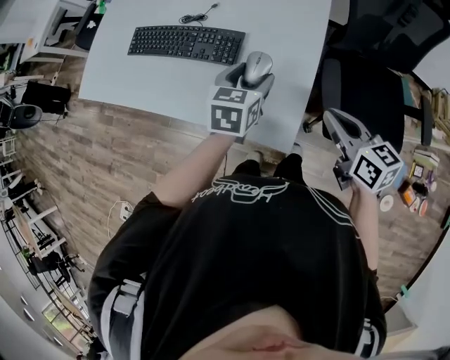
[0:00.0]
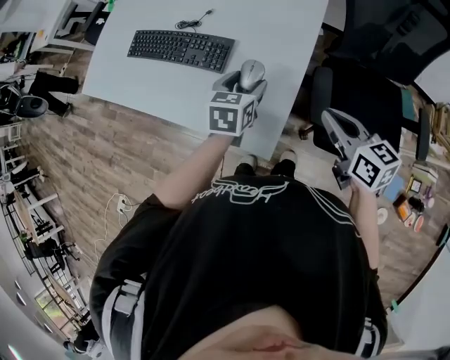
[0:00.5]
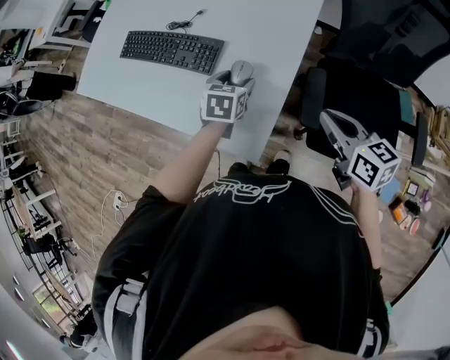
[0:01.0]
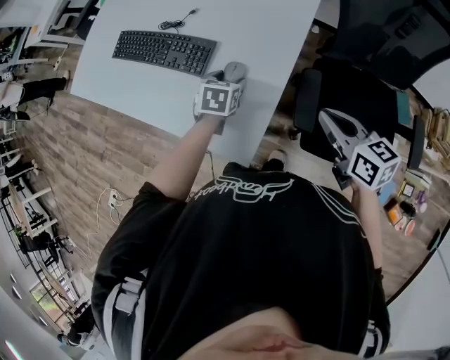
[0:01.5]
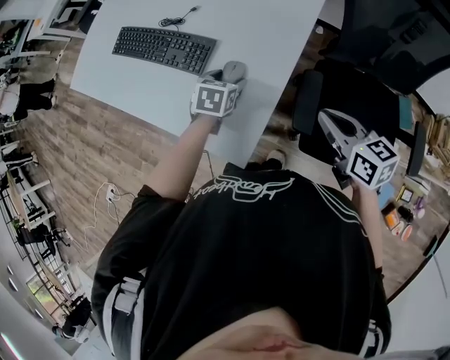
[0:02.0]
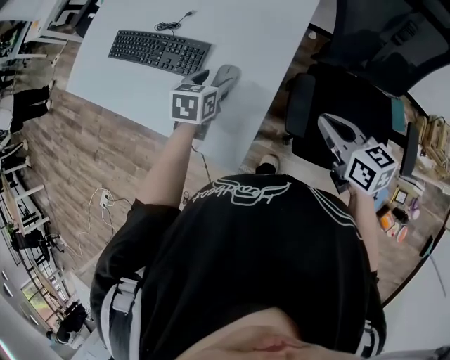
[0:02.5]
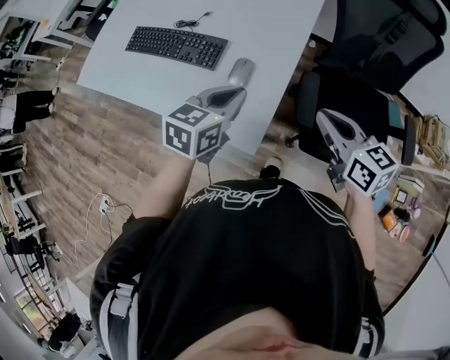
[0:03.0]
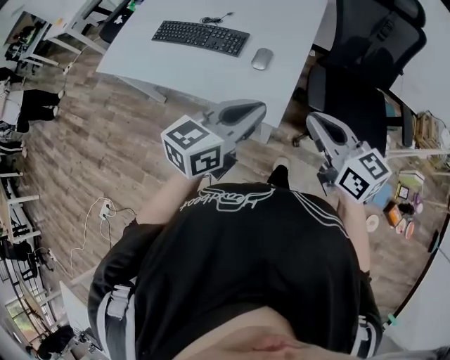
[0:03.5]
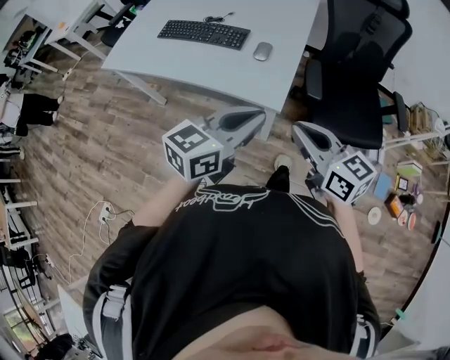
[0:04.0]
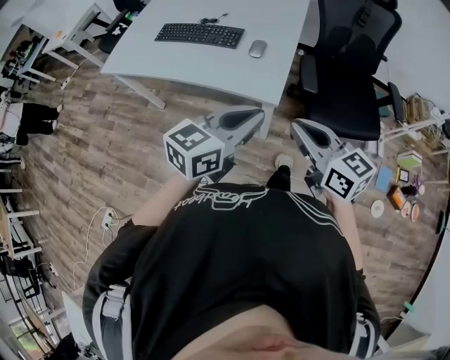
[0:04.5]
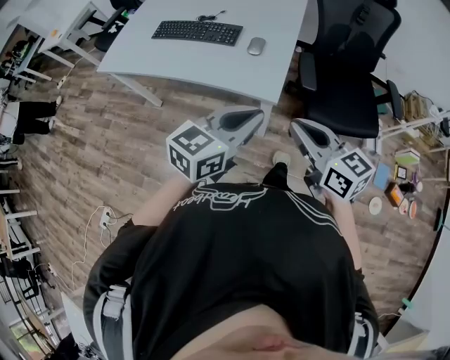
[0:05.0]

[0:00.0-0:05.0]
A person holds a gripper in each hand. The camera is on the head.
0:00.0 to 0:02.5: The left gripper travels downward by approximately 5 cm, while the right gripper moves to the right, about 15 cm.
0:02.5 to 0:05.0: The left gripper travels backward and upward by roughly 50 cm, points its fingers some 30 degrees further upward, and closes its fingers. The right gripper shifts approximately 40 cm backward and to the left, and turns by about 20 degrees.

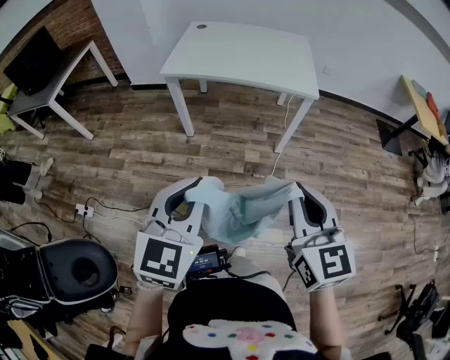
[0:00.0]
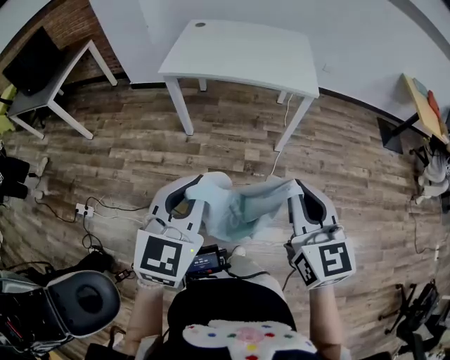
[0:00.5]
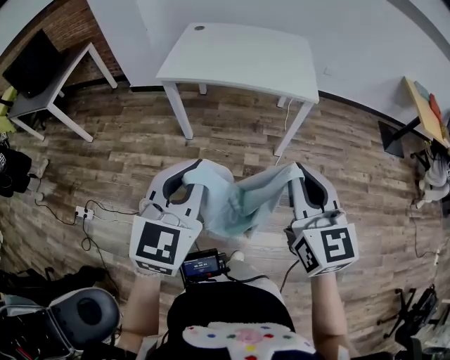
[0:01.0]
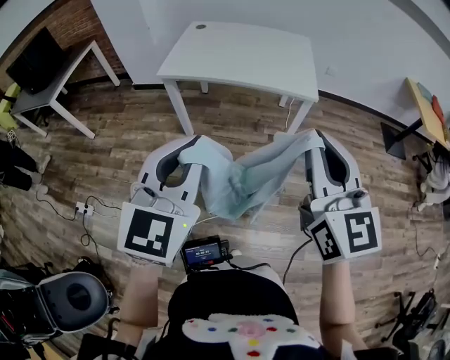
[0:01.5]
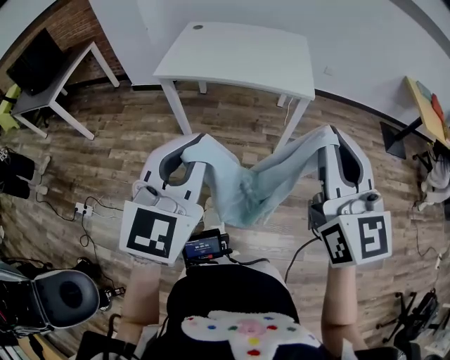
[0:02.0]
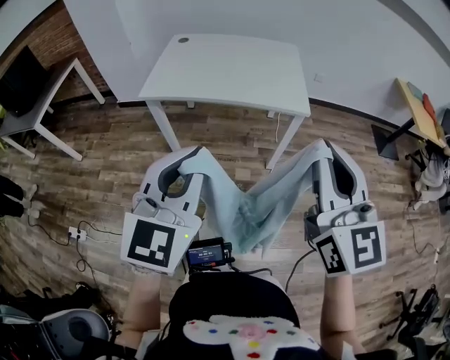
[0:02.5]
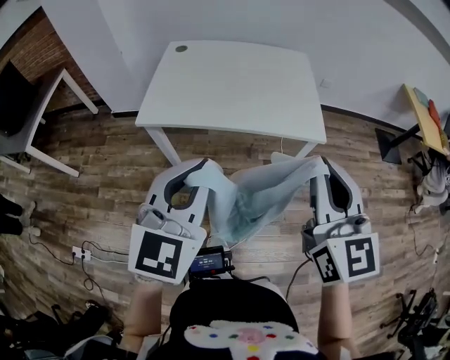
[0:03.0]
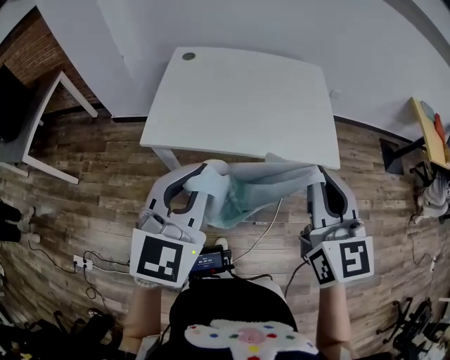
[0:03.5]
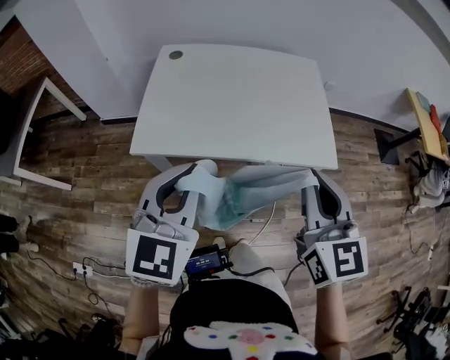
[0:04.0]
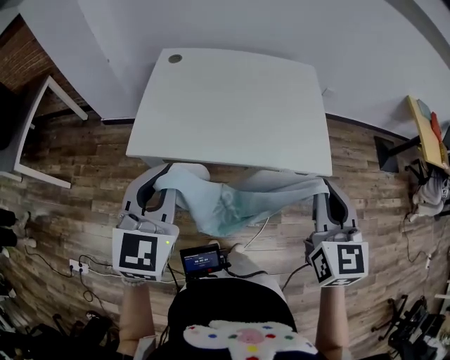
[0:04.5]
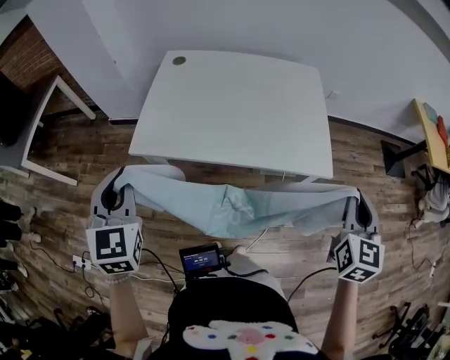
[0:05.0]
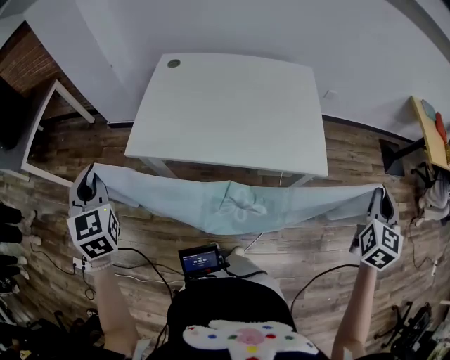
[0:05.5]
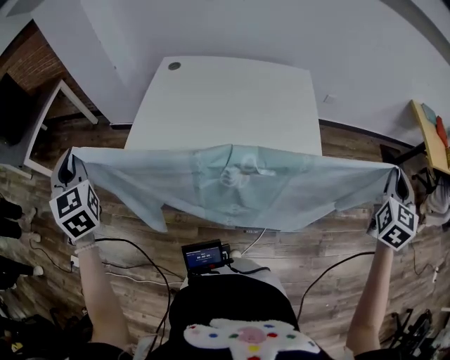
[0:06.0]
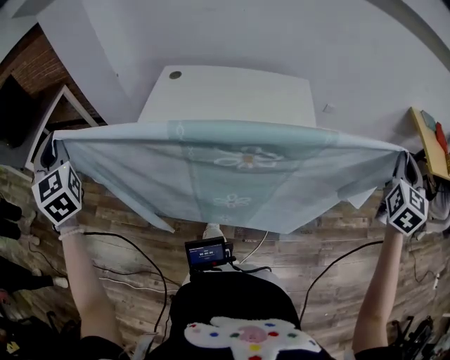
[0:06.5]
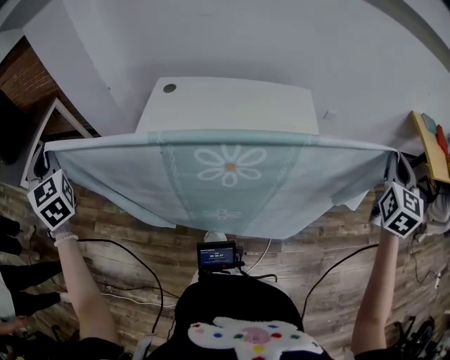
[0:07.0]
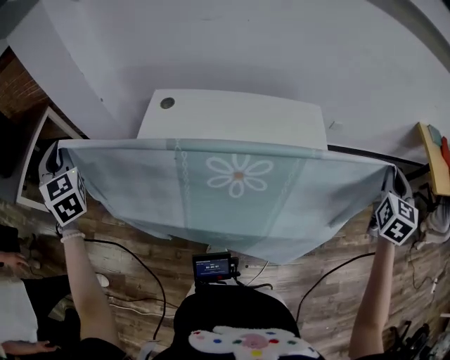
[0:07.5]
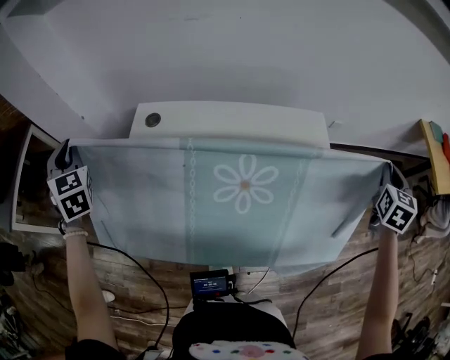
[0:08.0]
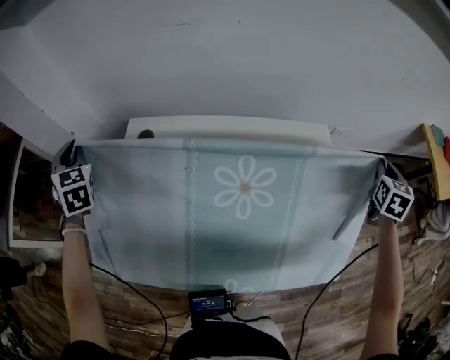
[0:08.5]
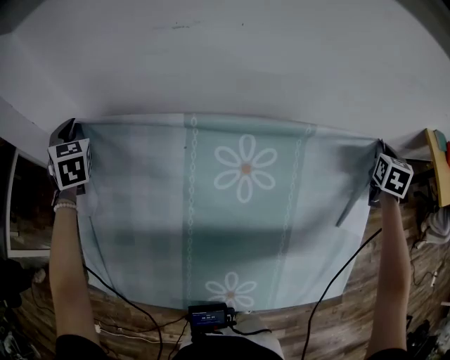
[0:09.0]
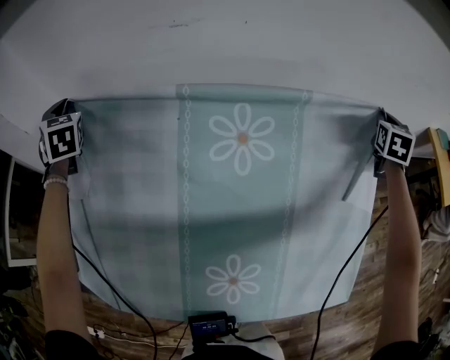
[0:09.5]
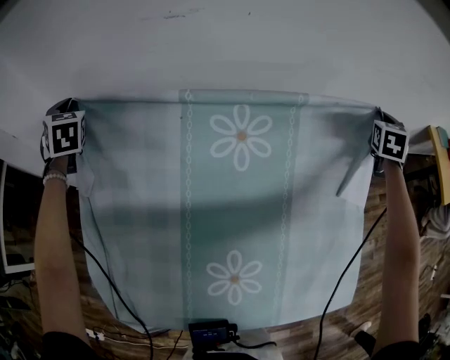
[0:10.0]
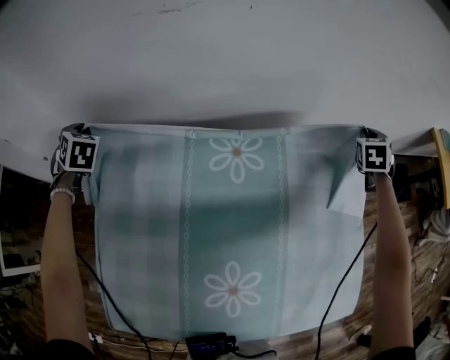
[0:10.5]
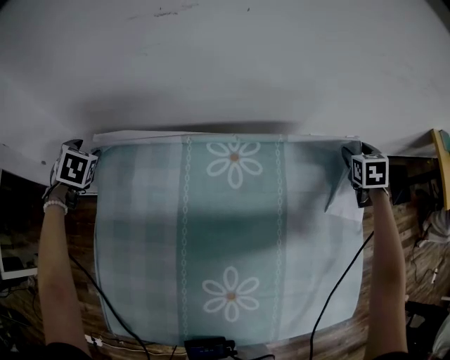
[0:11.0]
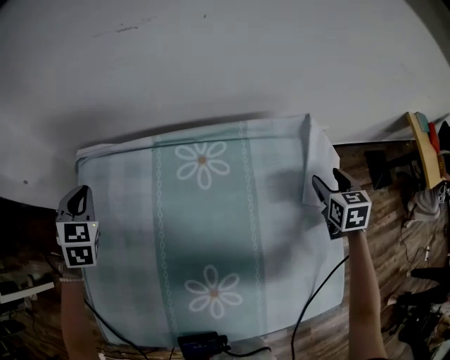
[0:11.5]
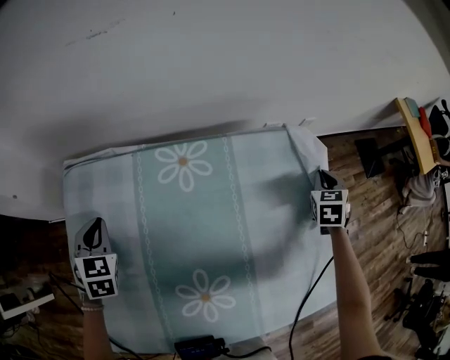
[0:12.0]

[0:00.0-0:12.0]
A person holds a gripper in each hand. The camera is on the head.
0:00.0 to 0:02.0: The grippers both shift upward, forward and to the right by about 15 cm.
0:02.0 to 0:04.0: The two grippers go roughly 35 cm forward and to the left.
0:04.0 to 0:06.0: The right gripper moves to the right, about 35 cm, and turns by roughly 30 degrees. The left gripper shifts some 25 cm to the left, and turns by about 50 degrees.
0:06.0 to 0:08.0: Both grippers travel together forward, approximately 35 cm.
0:08.0 to 0:10.0: Both grippers travel together forward, approximately 30 cm.
0:10.0 to 0:12.0: The left gripper moves to the right, backward and downward, some 30 cm, swivels approximately 30 degrees, and opens, then closes again; the right gripper is displaced backward and downward by about 20 cm, and opens, then closes once more.

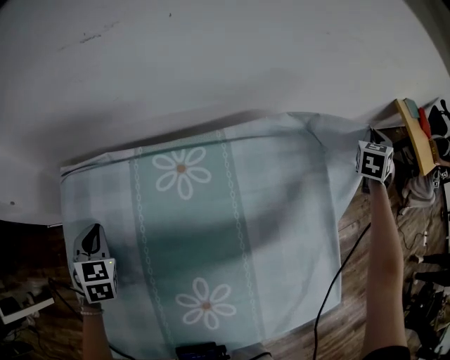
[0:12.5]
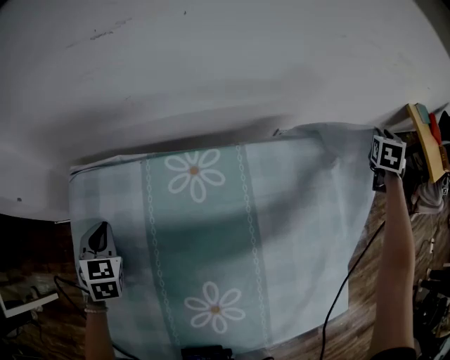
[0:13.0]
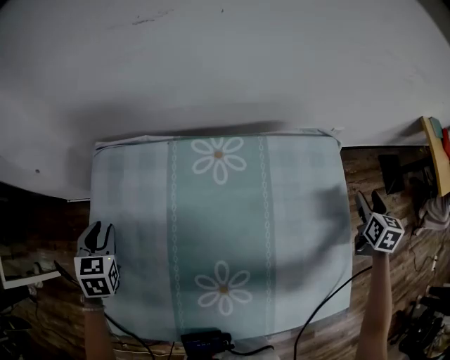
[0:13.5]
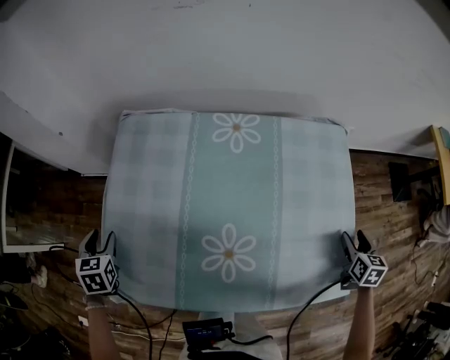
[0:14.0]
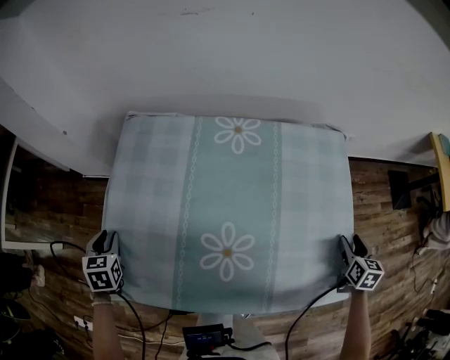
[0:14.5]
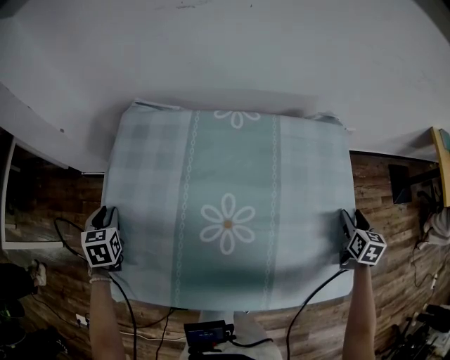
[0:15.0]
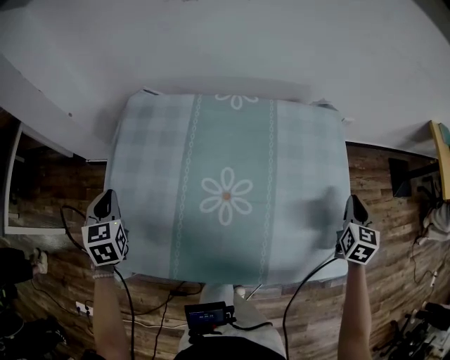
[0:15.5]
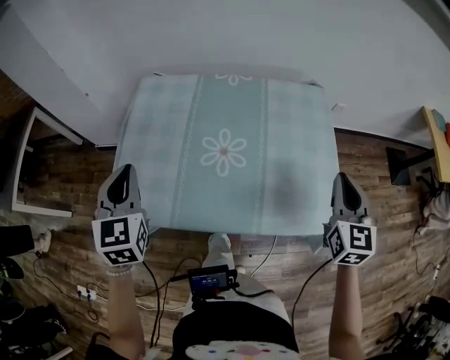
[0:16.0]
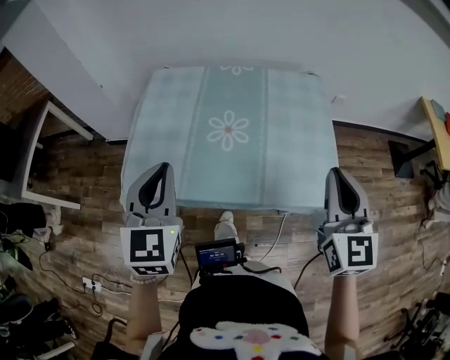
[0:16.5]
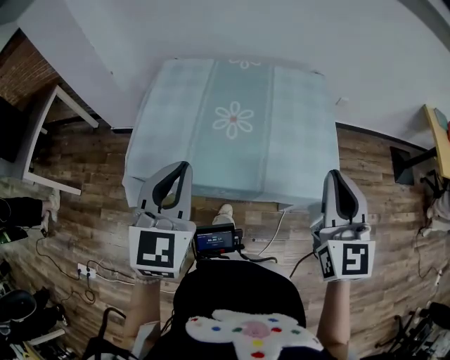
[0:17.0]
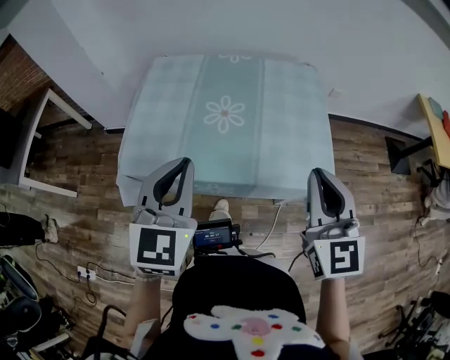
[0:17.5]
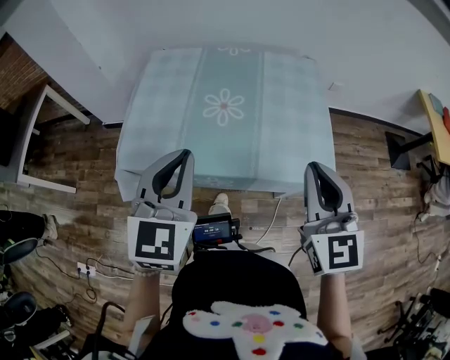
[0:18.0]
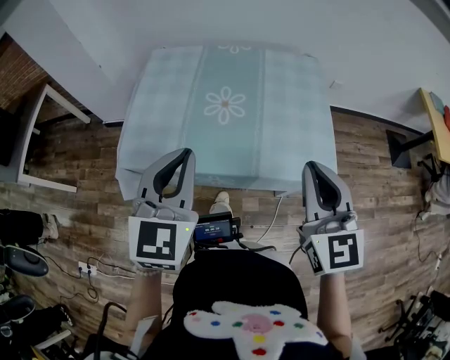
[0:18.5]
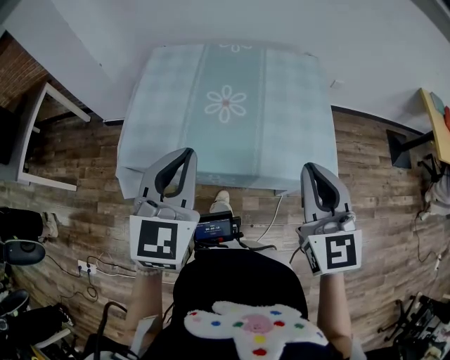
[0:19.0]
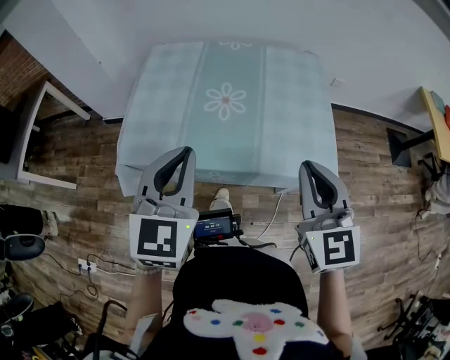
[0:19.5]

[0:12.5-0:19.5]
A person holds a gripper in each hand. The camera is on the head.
0:12.5 to 0:14.5: The left gripper shifts by roughly 25 cm, changes its angle by approximately 30 degrees, and opens up. The right gripper moves roughly 35 cm, rotates some 50 degrees, and opens.
0:14.5 to 0:16.0: The left gripper travels upward and to the right by some 25 cm, tips its fingers upward by about 30 degrees, and closes. Meanwhile the right gripper moves upward and to the left, approximately 25 cm, rotates about 30 degrees, and closes up.
0:16.0 to 0:17.5: The right gripper is displaced backward, to the left and upward by approximately 20 cm; the left gripper shifts about 20 cm backward and to the right.
0:17.5 to 0:19.5: The grippers move only a little.

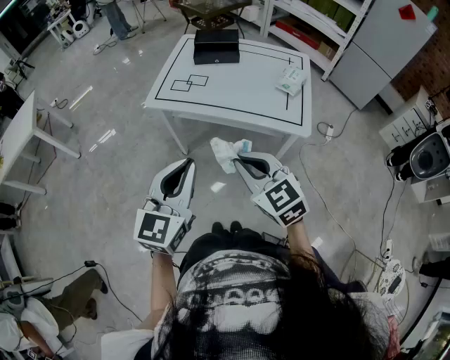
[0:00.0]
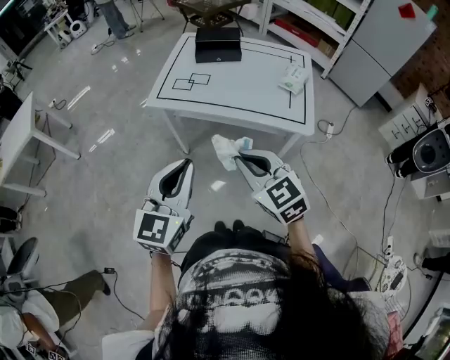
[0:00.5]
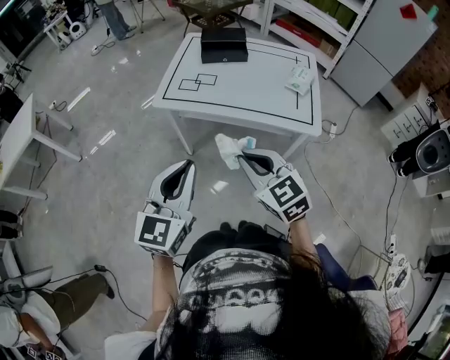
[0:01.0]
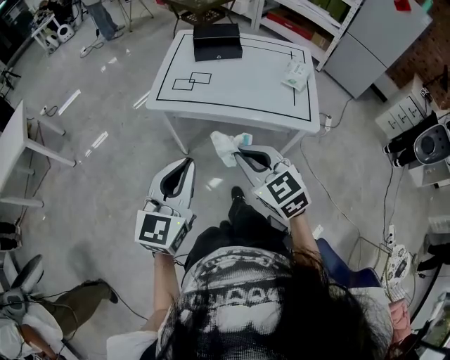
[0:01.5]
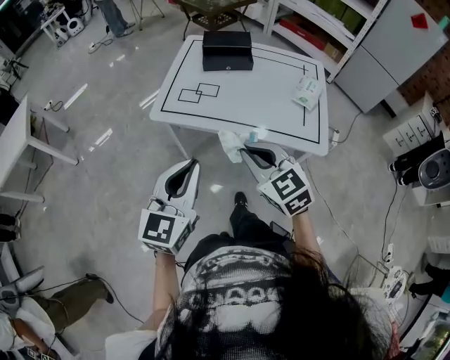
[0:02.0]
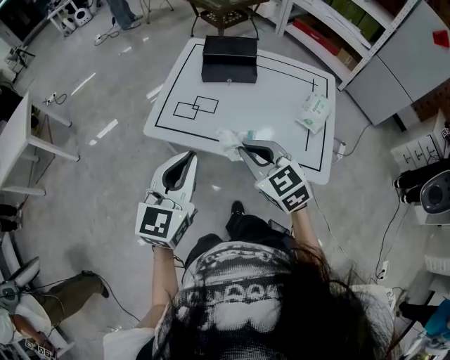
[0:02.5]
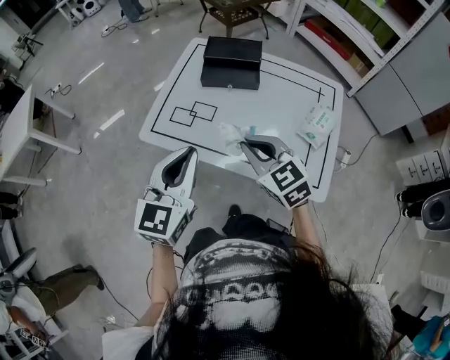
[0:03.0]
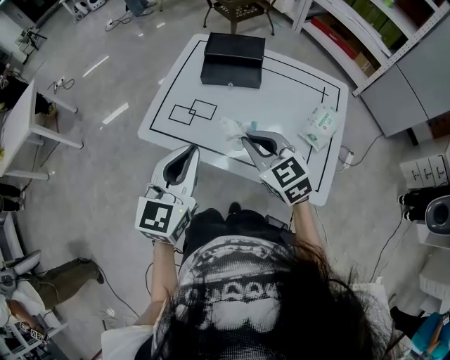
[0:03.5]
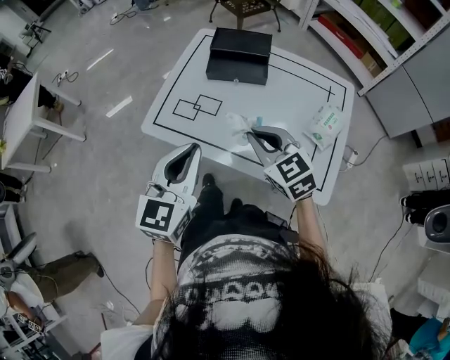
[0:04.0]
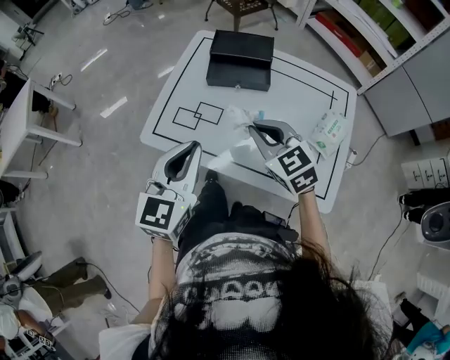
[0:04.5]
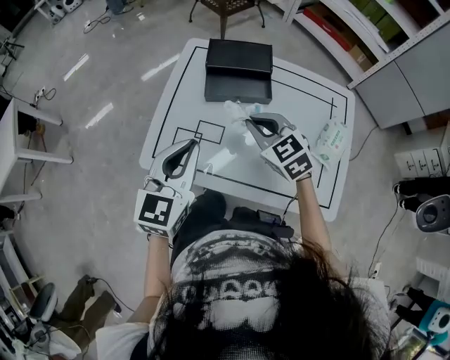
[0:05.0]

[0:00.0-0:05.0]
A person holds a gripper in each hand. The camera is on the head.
0:00.0 to 0:02.5: The two grippers go about 25 cm forward.
0:02.5 to 0:05.0: The two grippers go some 25 cm forward.
